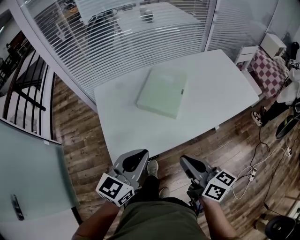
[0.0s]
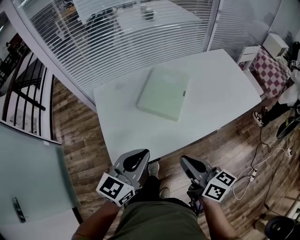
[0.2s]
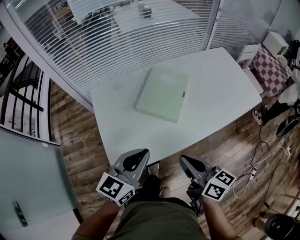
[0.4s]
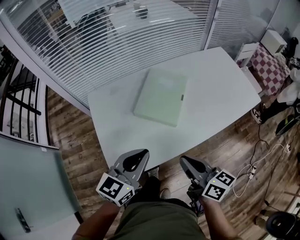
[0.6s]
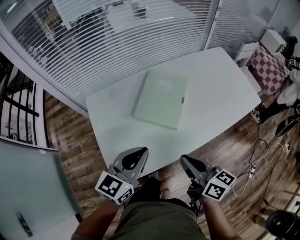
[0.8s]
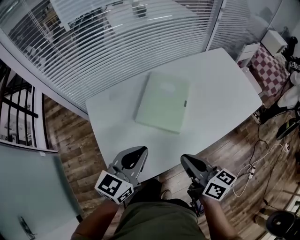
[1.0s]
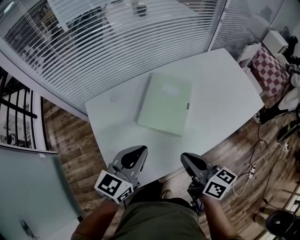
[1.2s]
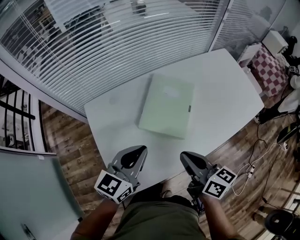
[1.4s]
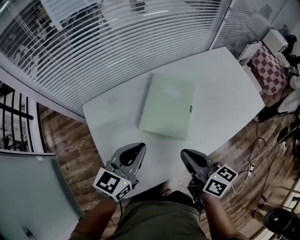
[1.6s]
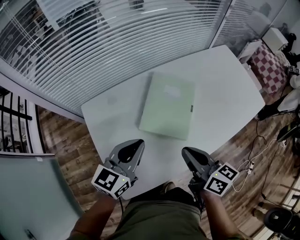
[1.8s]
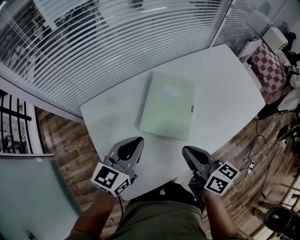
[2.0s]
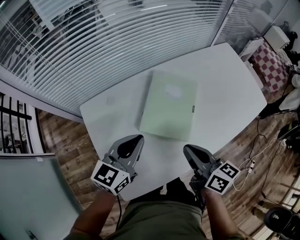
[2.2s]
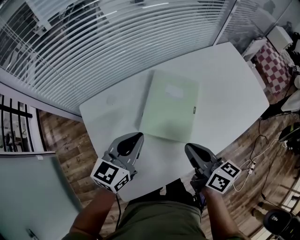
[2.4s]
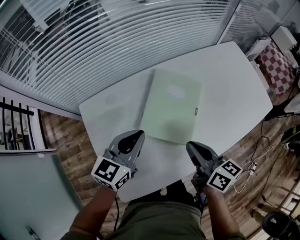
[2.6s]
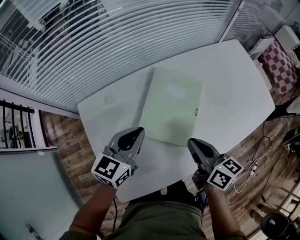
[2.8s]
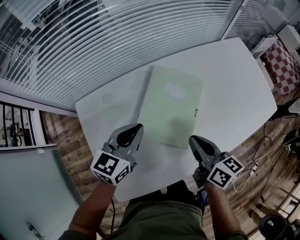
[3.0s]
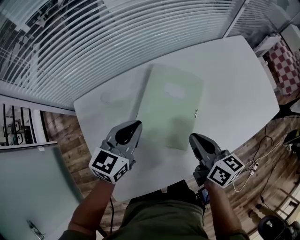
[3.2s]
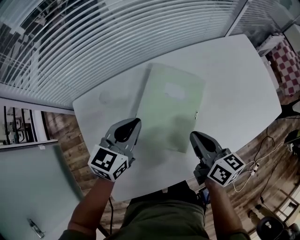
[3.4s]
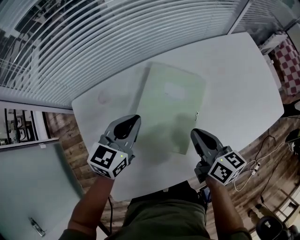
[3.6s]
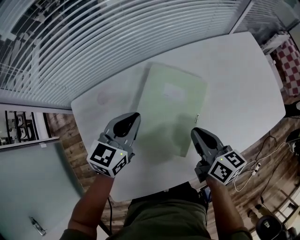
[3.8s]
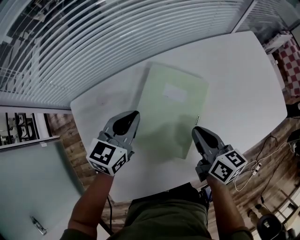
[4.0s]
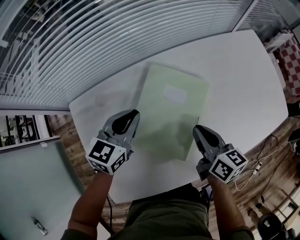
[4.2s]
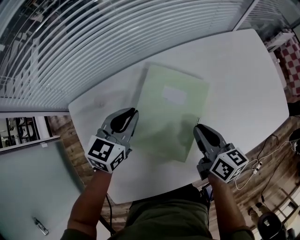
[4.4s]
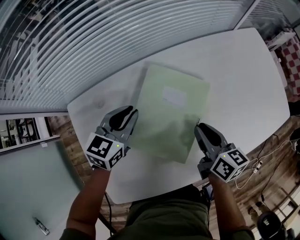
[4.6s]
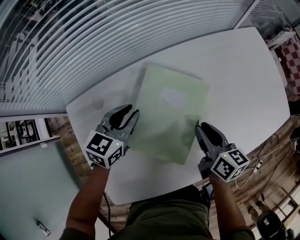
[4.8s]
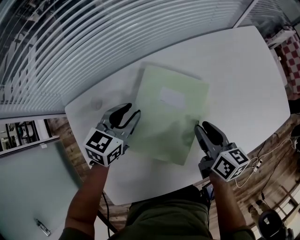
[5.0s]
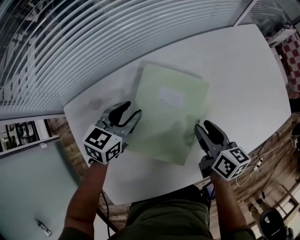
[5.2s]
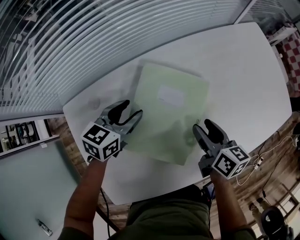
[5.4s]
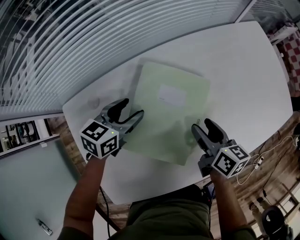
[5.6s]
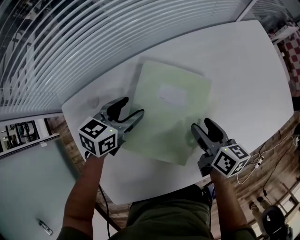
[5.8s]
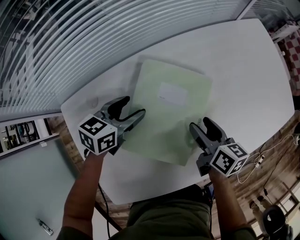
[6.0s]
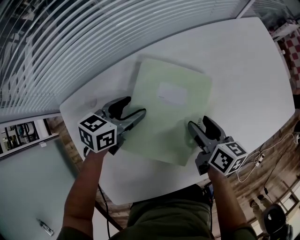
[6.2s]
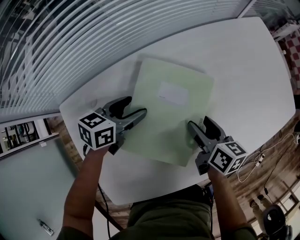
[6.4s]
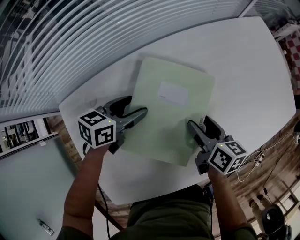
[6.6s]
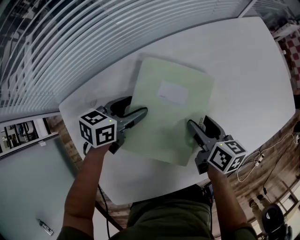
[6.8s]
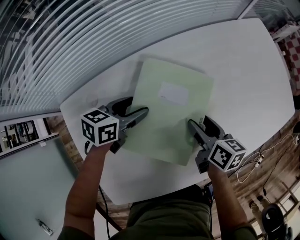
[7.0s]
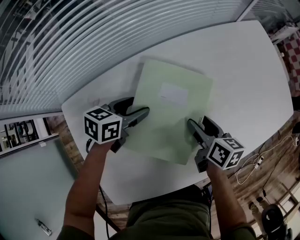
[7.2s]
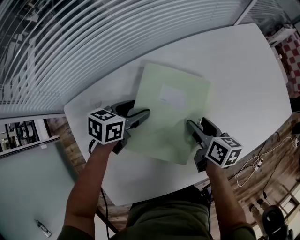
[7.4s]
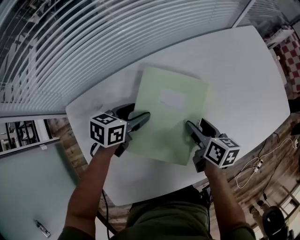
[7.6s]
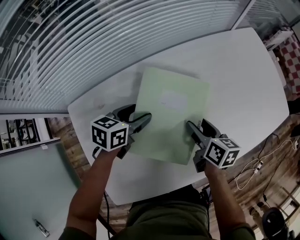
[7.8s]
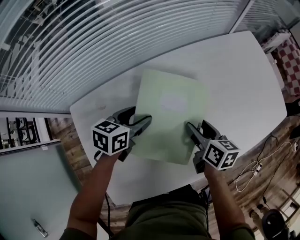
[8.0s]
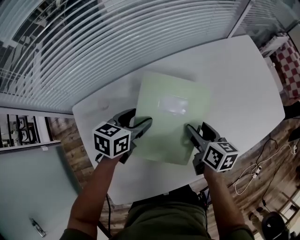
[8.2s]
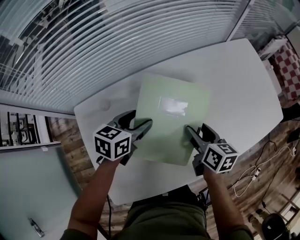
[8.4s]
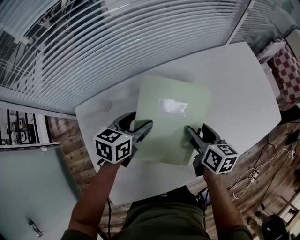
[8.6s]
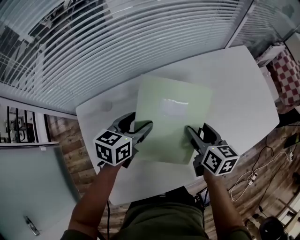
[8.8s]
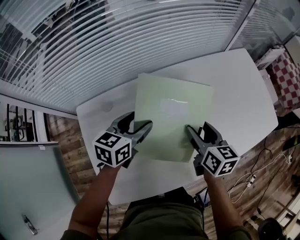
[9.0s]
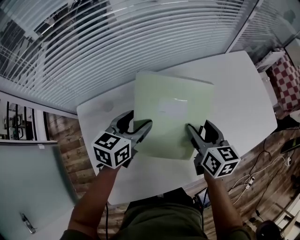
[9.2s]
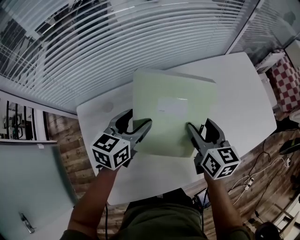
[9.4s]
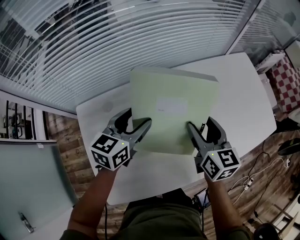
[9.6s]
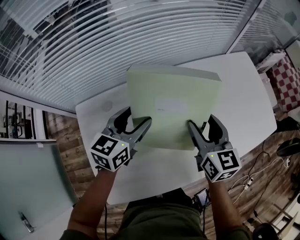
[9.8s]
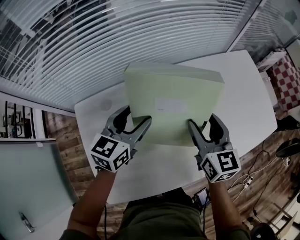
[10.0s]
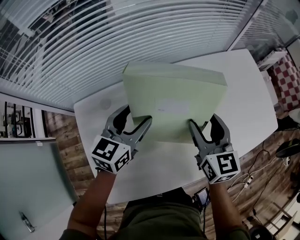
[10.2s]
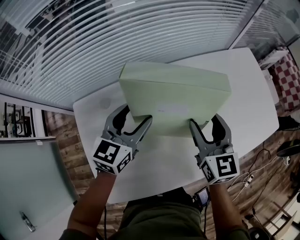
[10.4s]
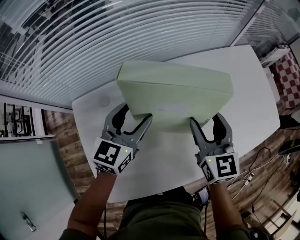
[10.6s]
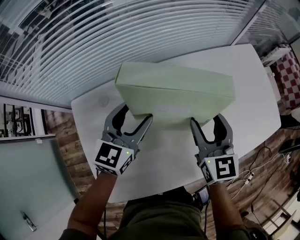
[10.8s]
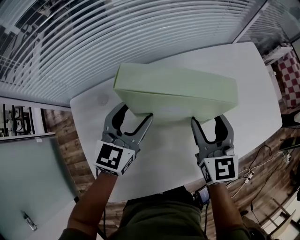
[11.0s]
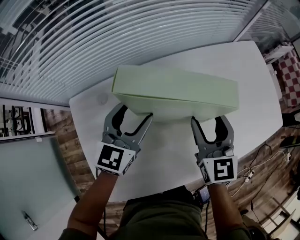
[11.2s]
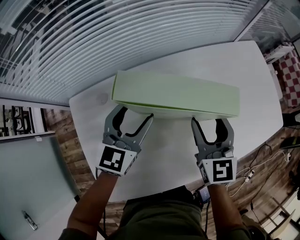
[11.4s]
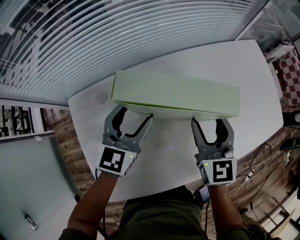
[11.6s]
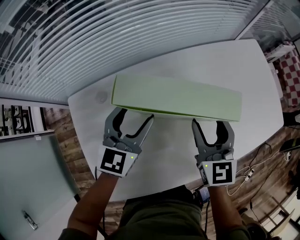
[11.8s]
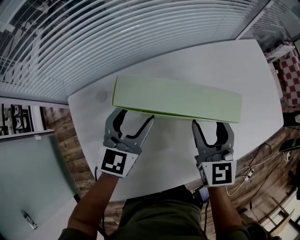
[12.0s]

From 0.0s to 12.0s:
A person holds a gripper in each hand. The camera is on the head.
From 0.0s to 1.6s: The two grippers go roughly 20 cm forward.
From 1.6s to 3.0s: The left gripper travels forward and downward by about 15 cm. The right gripper moves forward, downward and to the right, approximately 15 cm.
From 3.0s to 4.4s: The grippers both shift forward and downward by roughly 10 cm.
From 4.4s to 6.0s: Both grippers travel together downward, about 5 cm. The left gripper changes its angle by approximately 20 degrees, and opens up. The right gripper opens.
From 6.0s to 7.6s: The grippers stay close to where they were, moving slightly.
From 7.6s to 9.0s: The two grippers go about 10 cm upward.
From 9.0s to 10.4s: The right gripper shifts about 5 cm upward, and changes its angle by some 30 degrees; the left gripper ends up approximately 5 cm from where it was.
From 10.4s to 12.0s: The grippers move only a little.

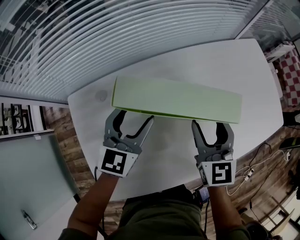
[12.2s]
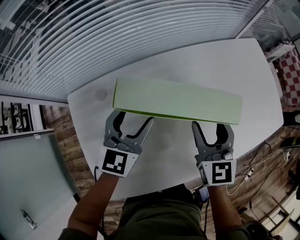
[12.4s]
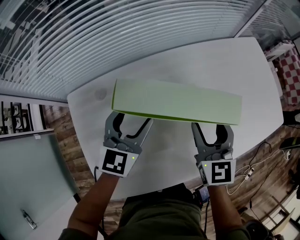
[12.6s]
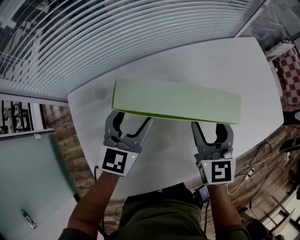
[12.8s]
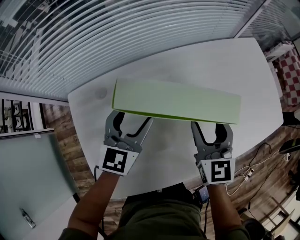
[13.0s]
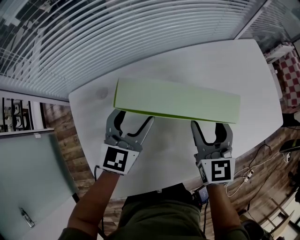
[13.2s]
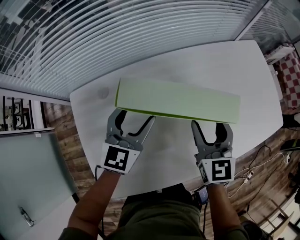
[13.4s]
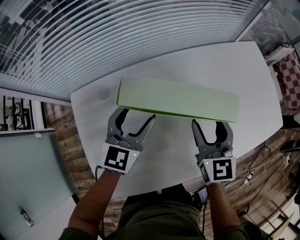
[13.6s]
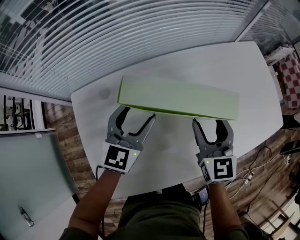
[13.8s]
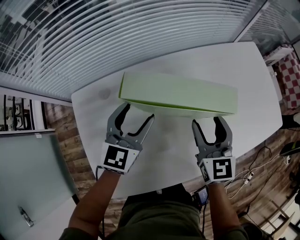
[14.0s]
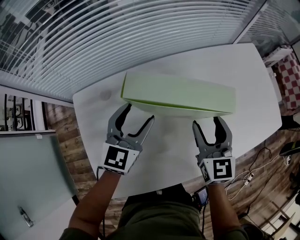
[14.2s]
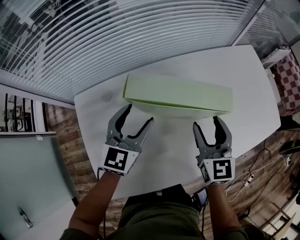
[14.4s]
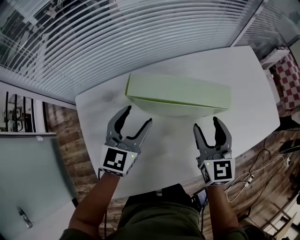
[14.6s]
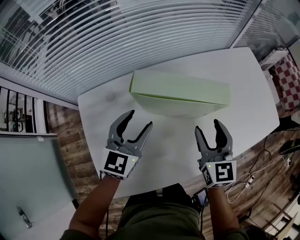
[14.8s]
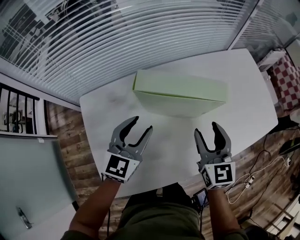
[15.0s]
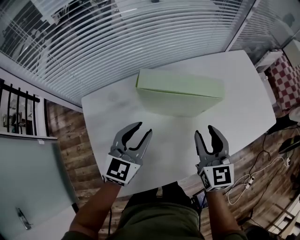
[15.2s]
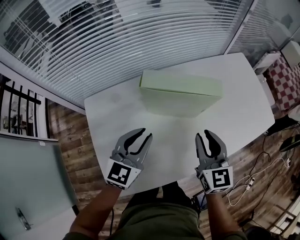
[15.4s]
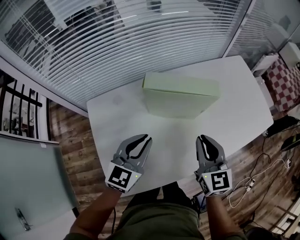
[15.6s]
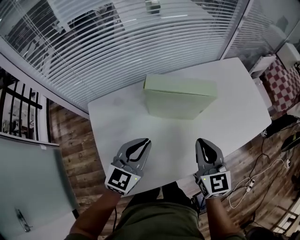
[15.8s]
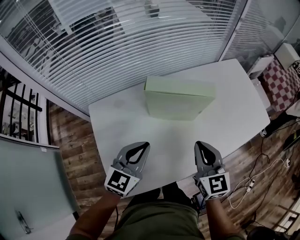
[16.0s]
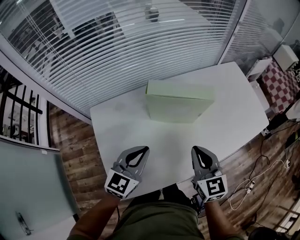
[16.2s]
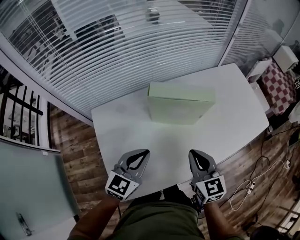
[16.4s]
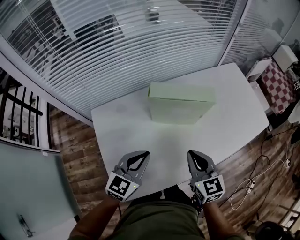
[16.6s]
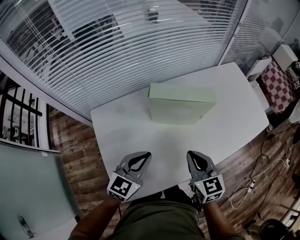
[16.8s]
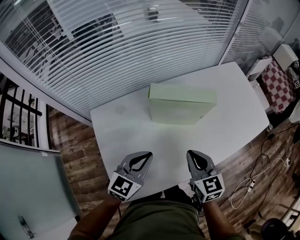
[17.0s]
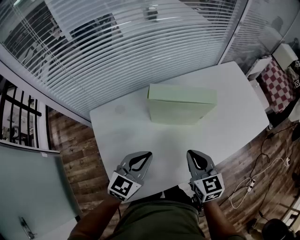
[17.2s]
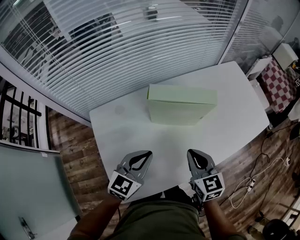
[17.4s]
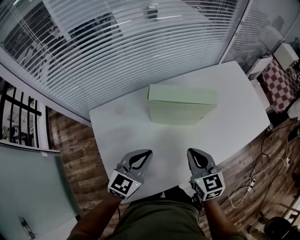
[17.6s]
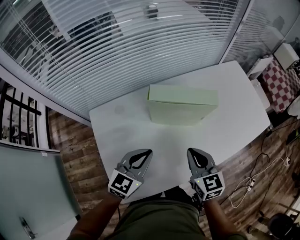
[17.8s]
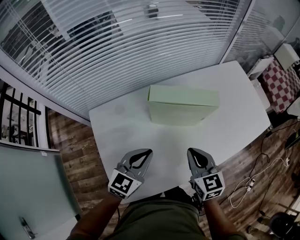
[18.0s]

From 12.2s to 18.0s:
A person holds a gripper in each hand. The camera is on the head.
From 12.2s to 13.6s: The two grippers keep their place.
From 13.6s to 15.0s: Both grippers travel together backward, about 5 cm.
From 15.0s to 16.6s: The left gripper heads backward, covering roughly 10 cm, and closes up. Meanwhile the right gripper is displaced backward and to the left by roughly 15 cm, and closes.
From 16.6s to 18.0s: The grippers make only small movements.

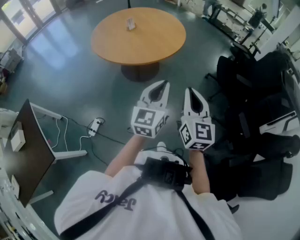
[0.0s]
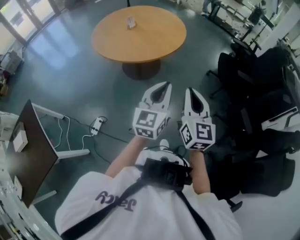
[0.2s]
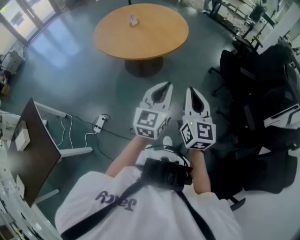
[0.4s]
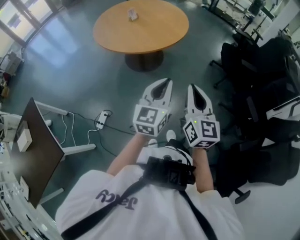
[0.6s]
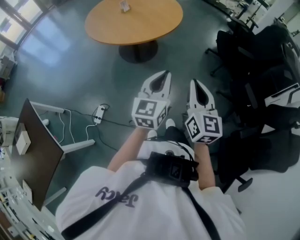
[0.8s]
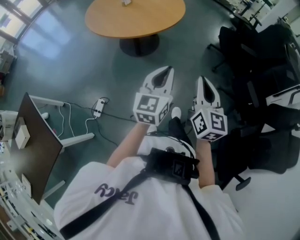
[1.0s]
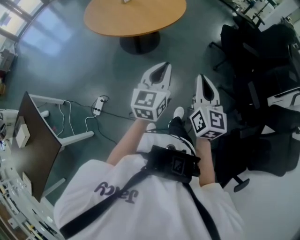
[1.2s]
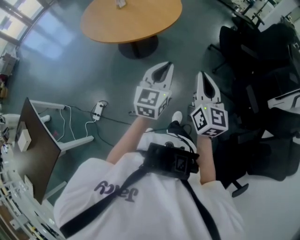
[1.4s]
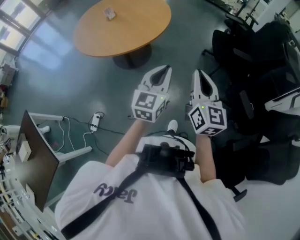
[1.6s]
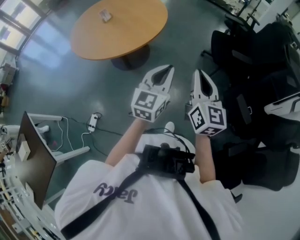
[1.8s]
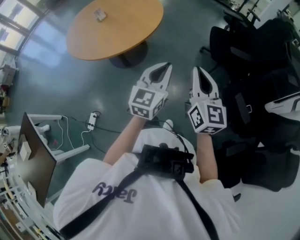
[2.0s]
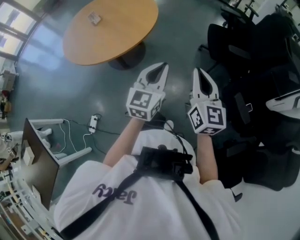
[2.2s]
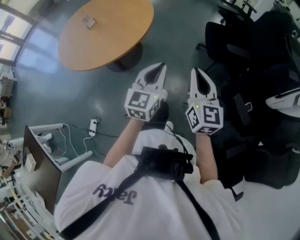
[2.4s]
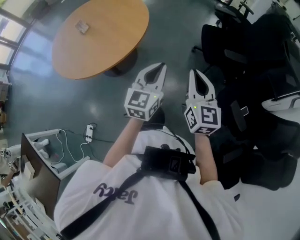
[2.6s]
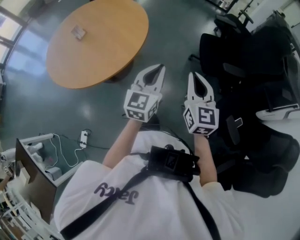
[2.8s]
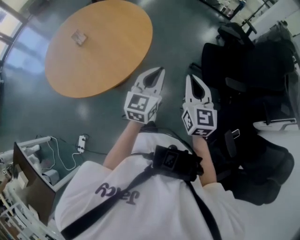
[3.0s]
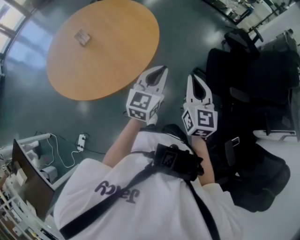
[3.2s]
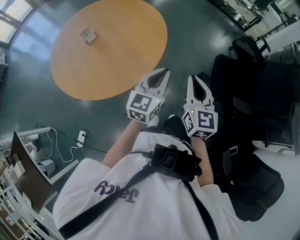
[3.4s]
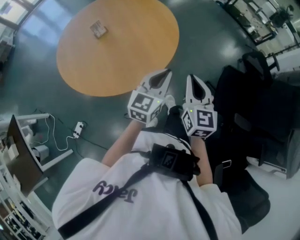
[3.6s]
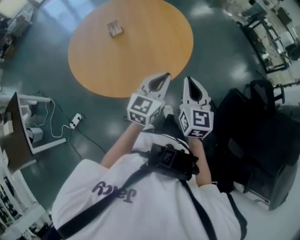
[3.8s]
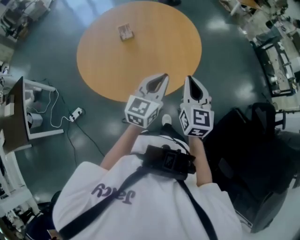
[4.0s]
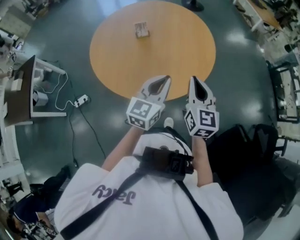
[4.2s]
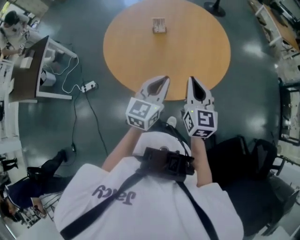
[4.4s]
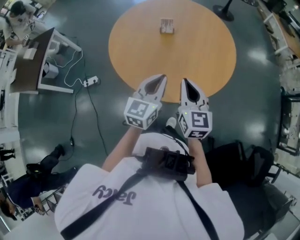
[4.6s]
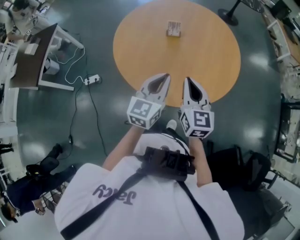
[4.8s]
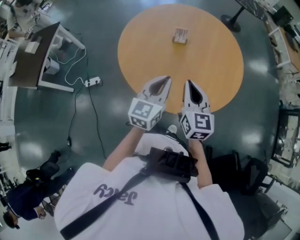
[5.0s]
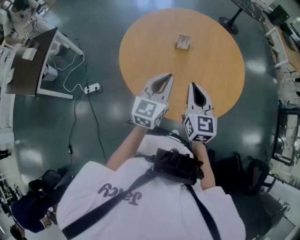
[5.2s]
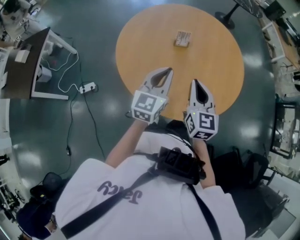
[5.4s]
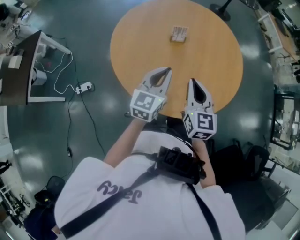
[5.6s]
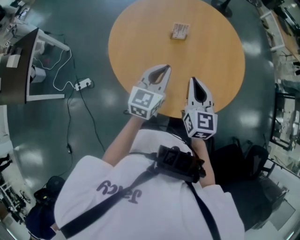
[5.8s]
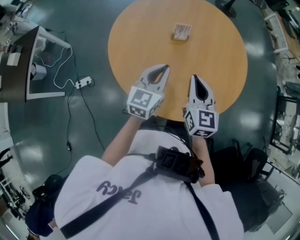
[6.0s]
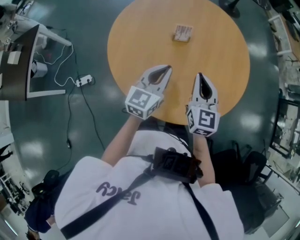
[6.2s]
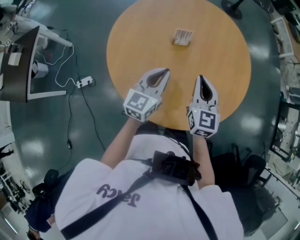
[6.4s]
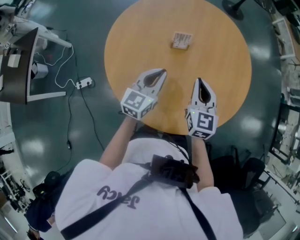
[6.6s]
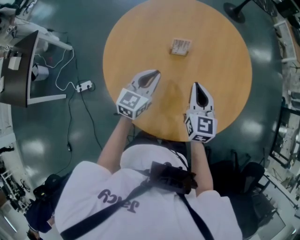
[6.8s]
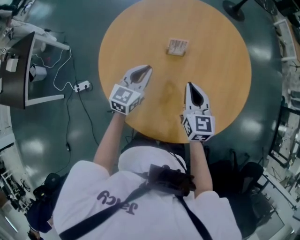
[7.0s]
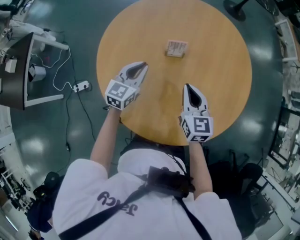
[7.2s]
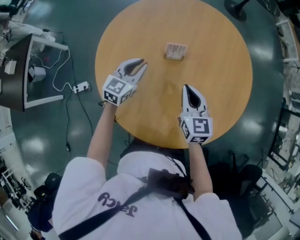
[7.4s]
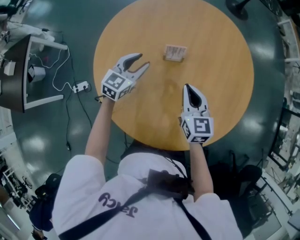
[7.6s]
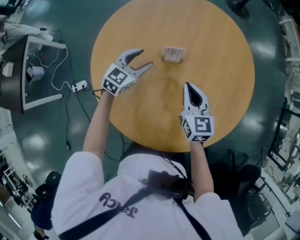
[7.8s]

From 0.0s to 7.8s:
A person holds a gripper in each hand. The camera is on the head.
From 0.0s to 1.6s: Both grippers travel together to the right and forward, roughly 10 cm.
From 1.6s to 3.2s: Both grippers move forward, roughly 35 cm.
From 3.2s to 4.6s: The right gripper moves about 25 cm, and turns by roughly 60 degrees, while the left gripper ends up roughly 20 cm from where it was, and changes its angle by roughly 60 degrees.
From 4.6s to 6.2s: The grippers both shift forward and to the left by about 20 cm.
From 6.2s to 7.8s: Both grippers travel together forward and downward, about 20 cm. The left gripper turns by roughly 30 degrees, and opens up.
